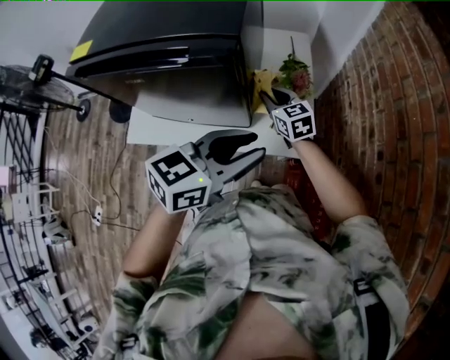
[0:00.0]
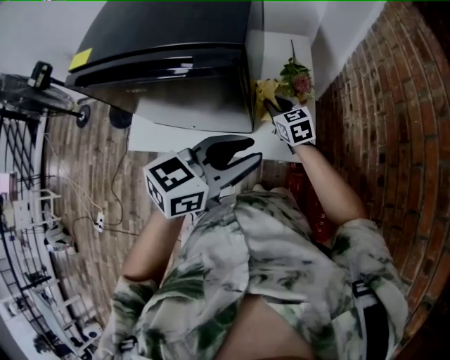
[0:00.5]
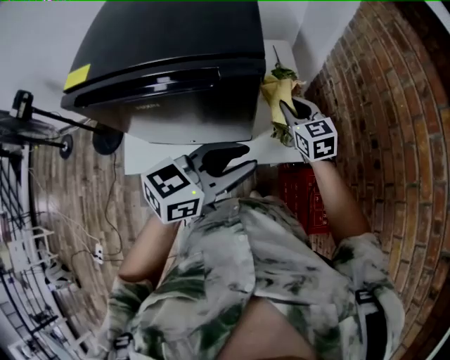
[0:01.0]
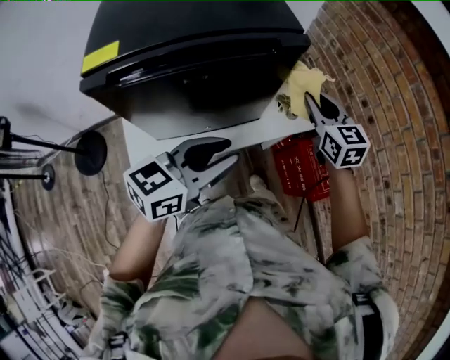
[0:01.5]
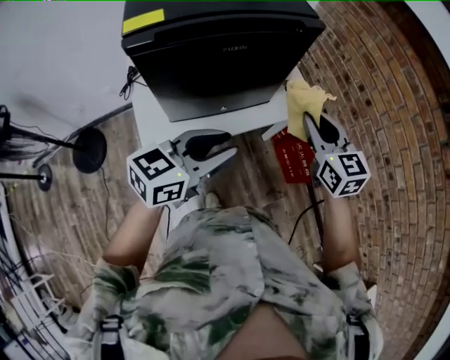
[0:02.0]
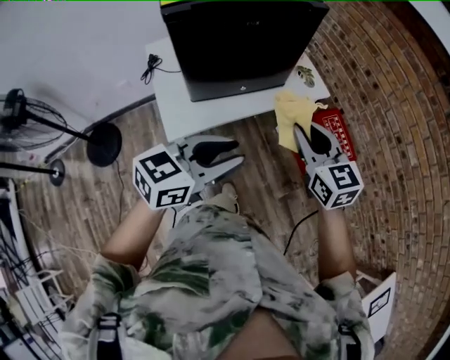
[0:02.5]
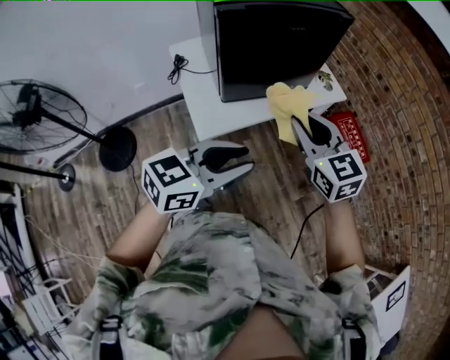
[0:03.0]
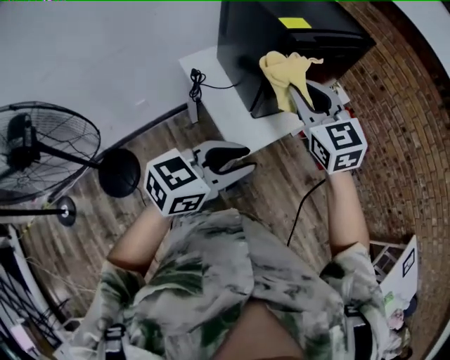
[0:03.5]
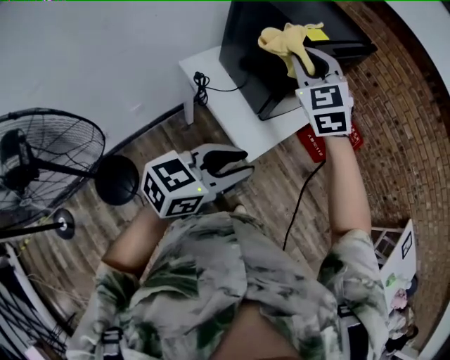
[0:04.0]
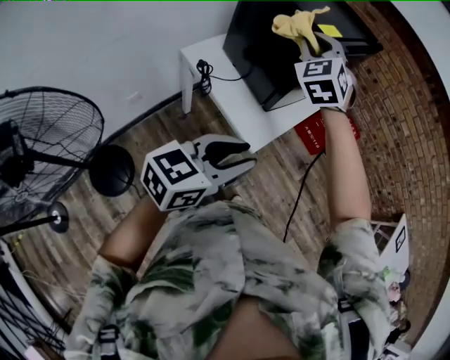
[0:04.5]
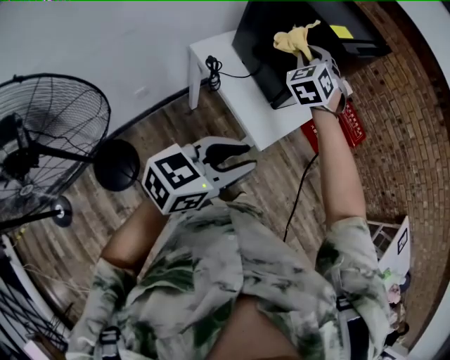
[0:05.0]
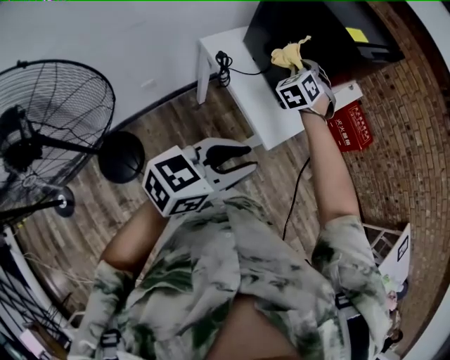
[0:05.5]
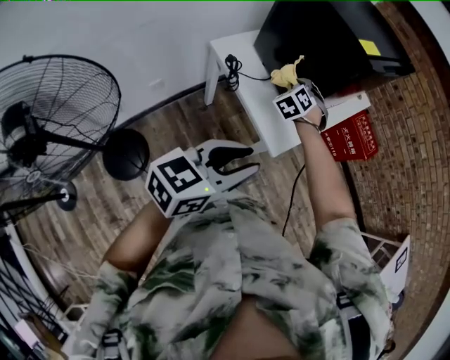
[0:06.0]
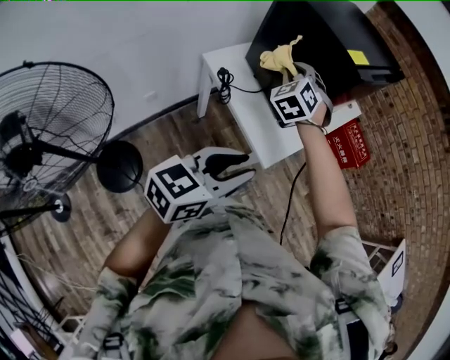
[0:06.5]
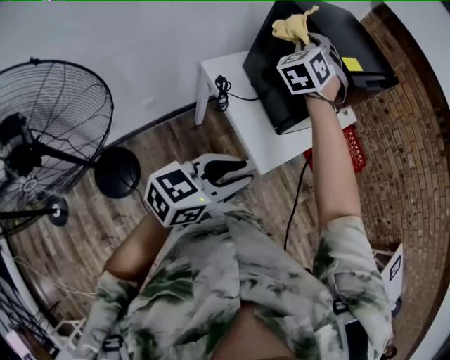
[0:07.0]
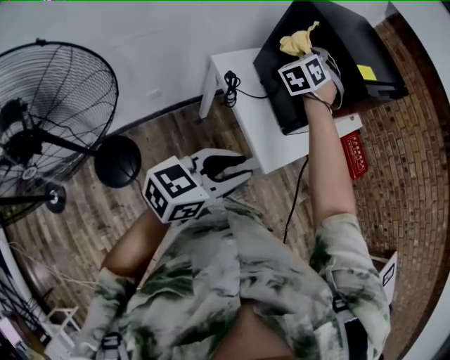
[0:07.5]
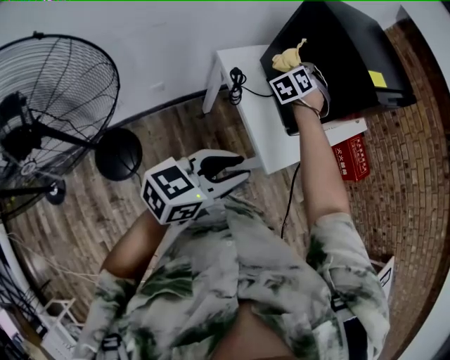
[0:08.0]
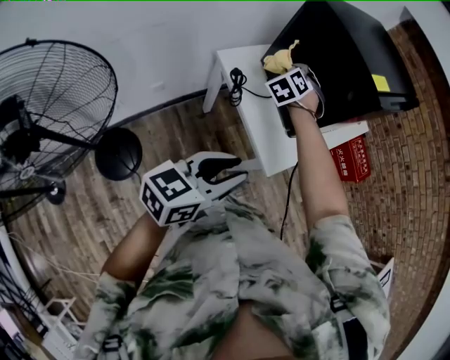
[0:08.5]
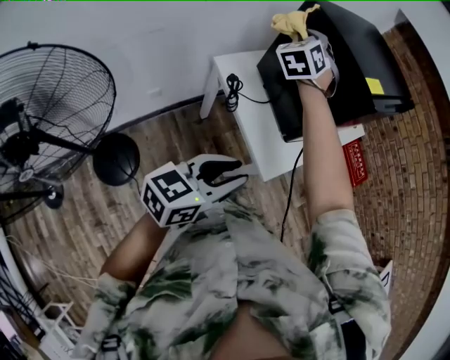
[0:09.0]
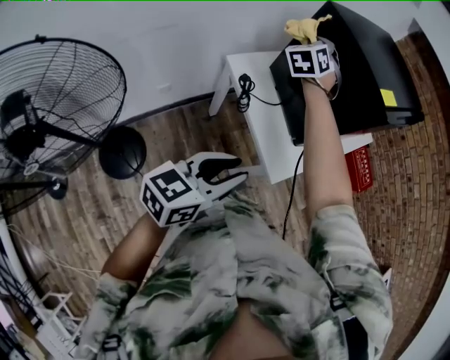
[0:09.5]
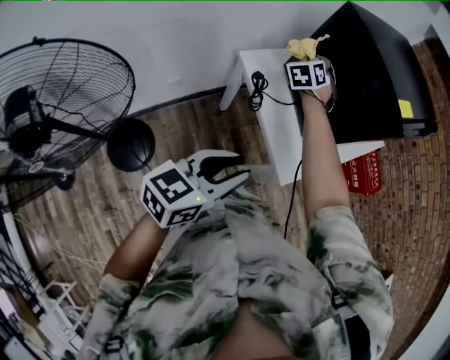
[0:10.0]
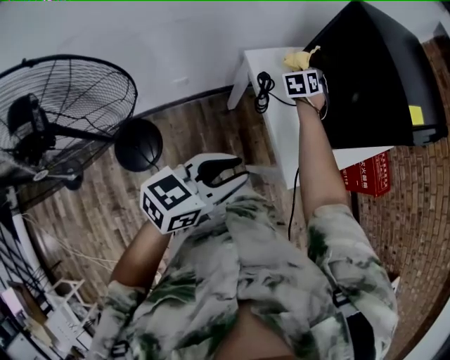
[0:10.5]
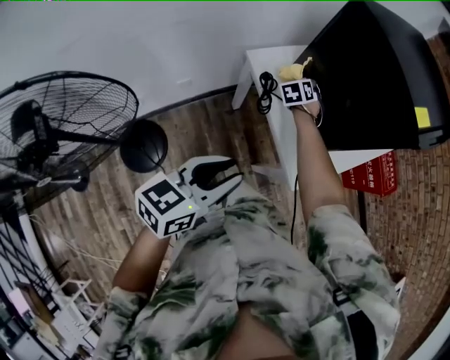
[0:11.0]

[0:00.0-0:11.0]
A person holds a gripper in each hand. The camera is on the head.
0:00.0 to 0:02.0: The left gripper shifts by some 35 cm, and swivels some 30 degrees. The right gripper moves some 35 cm, and turns by about 40 degrees.
0:02.0 to 0:03.5: The grippers both shift to the left and backward by about 40 cm.
0:03.5 to 0:05.5: The right gripper heads downward, to the left and forward, covering approximately 25 cm, and rotates approximately 50 degrees. Meanwhile the left gripper travels to the left and backward by approximately 15 cm.
0:05.5 to 0:07.5: The right gripper swings up and down, about 25 cm each way, with 2 reversals.
0:07.5 to 0:09.0: The right gripper goes about 5 cm to the left, and moves approximately 15 cm downward and comes back.
0:09.0 to 0:11.0: The right gripper is displaced downward by roughly 30 cm, and swivels some 30 degrees; the left gripper shifts some 10 cm to the left.

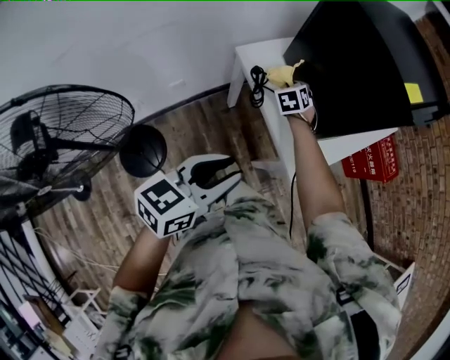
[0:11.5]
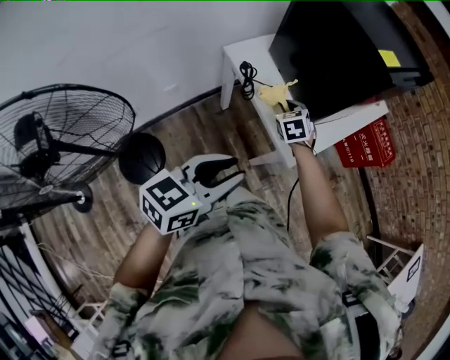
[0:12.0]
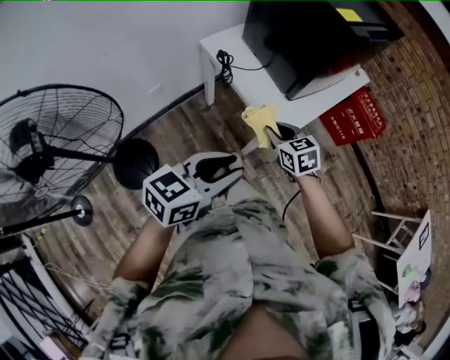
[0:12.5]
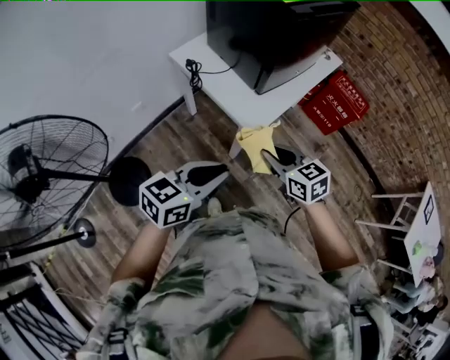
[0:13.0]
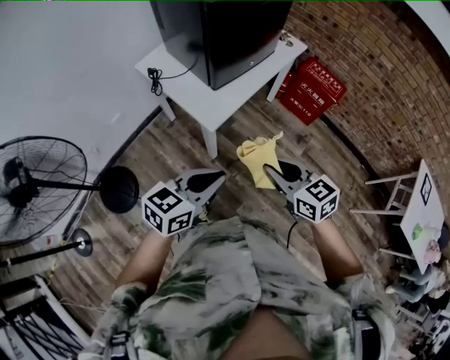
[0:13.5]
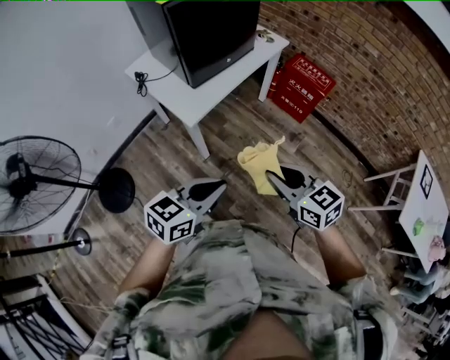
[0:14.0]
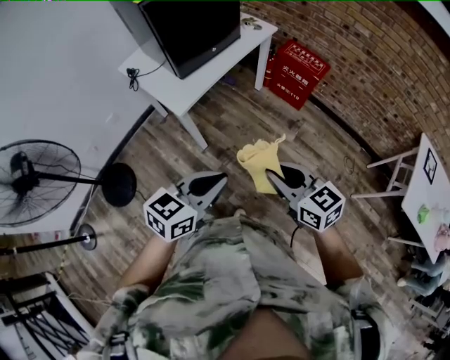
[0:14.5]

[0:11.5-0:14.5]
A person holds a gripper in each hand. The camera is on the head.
0:11.5 to 0:13.0: The left gripper heads to the right and backward, covering roughly 20 cm, while the right gripper shifts approximately 40 cm backward and to the right, and rotates roughly 40 degrees.
0:13.0 to 0:14.5: The right gripper goes about 40 cm to the right and backward. Meanwhile the left gripper goes some 35 cm to the right.

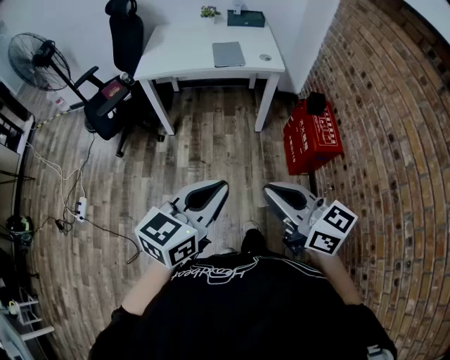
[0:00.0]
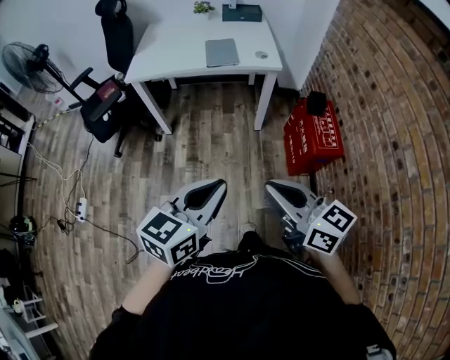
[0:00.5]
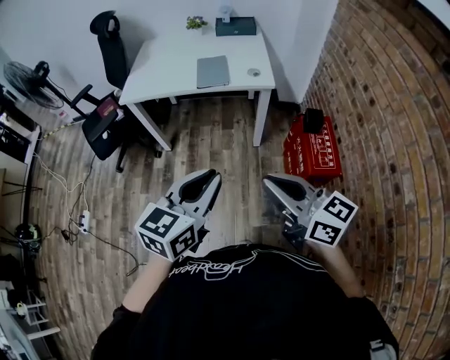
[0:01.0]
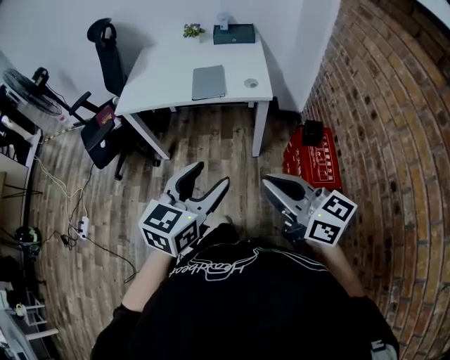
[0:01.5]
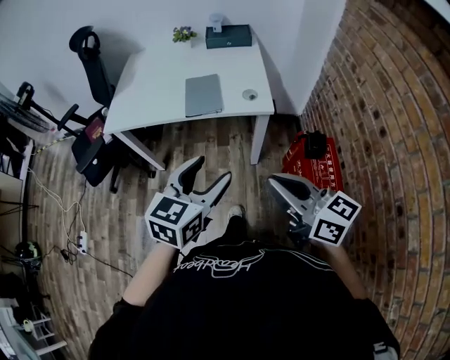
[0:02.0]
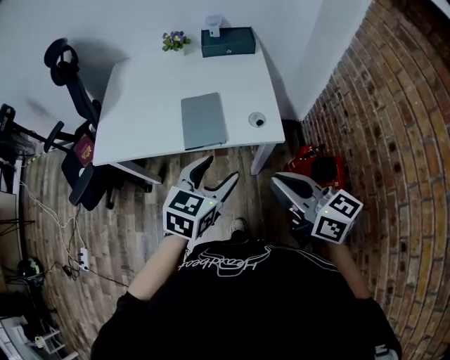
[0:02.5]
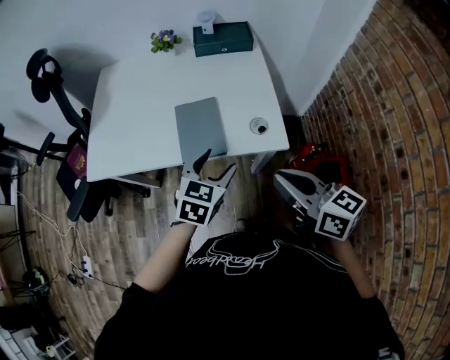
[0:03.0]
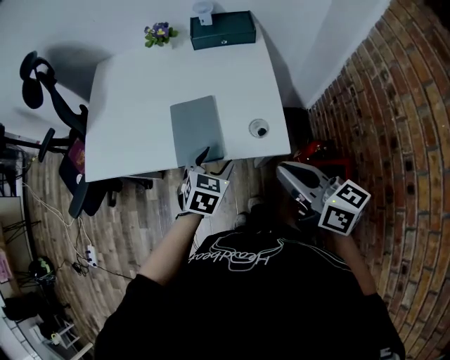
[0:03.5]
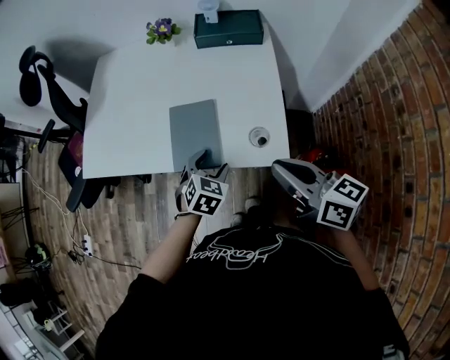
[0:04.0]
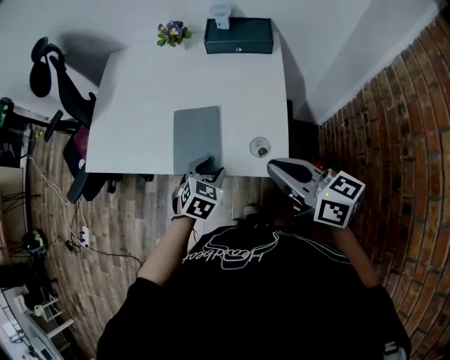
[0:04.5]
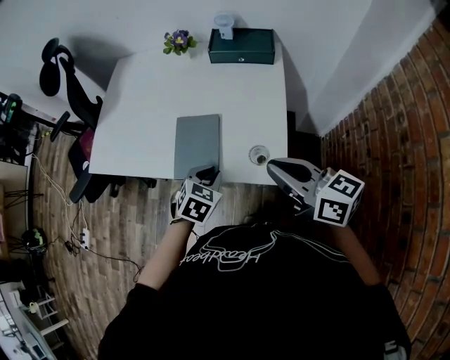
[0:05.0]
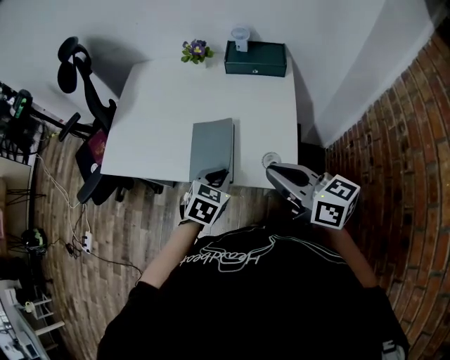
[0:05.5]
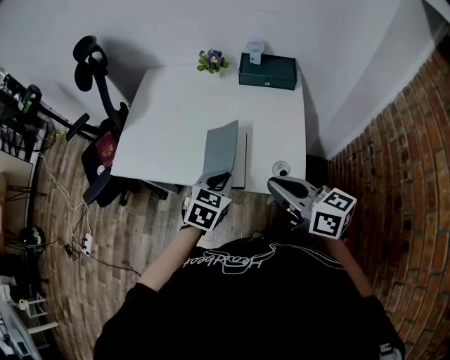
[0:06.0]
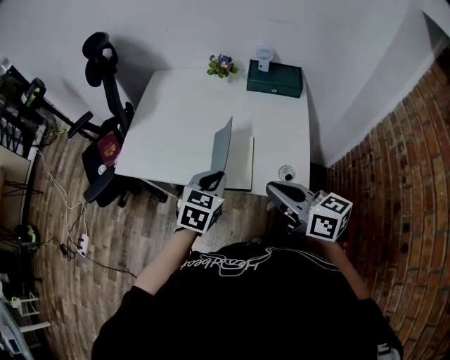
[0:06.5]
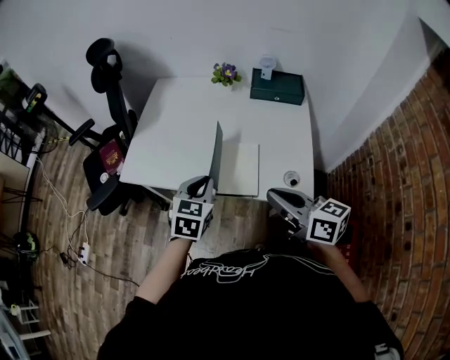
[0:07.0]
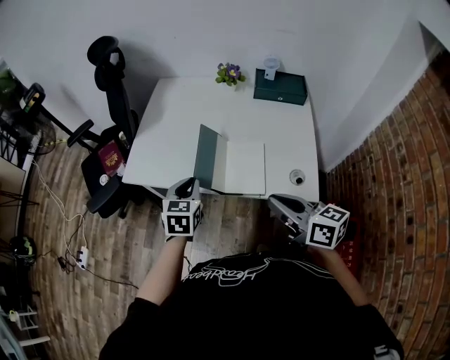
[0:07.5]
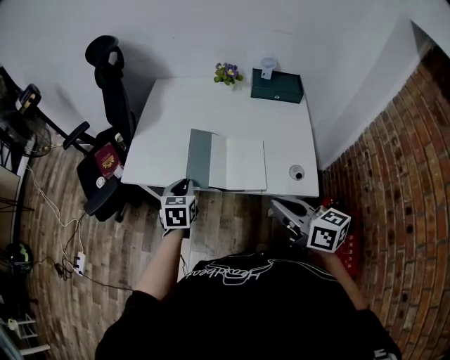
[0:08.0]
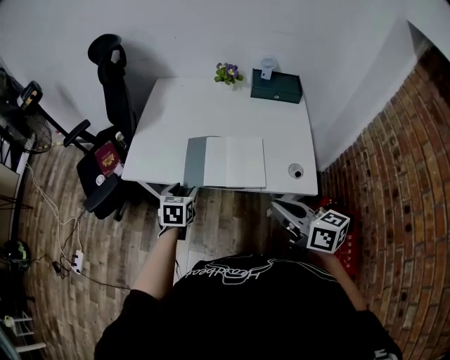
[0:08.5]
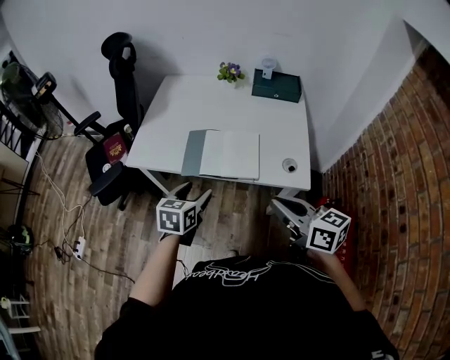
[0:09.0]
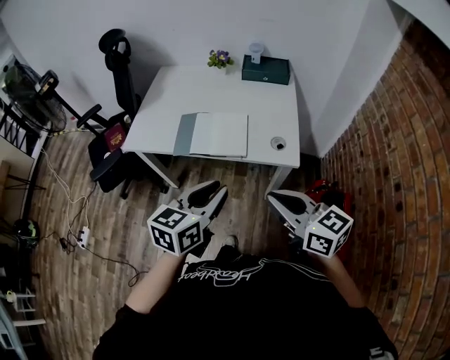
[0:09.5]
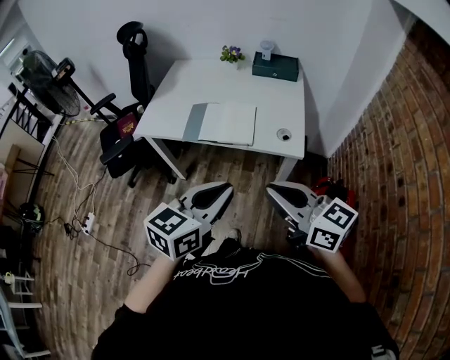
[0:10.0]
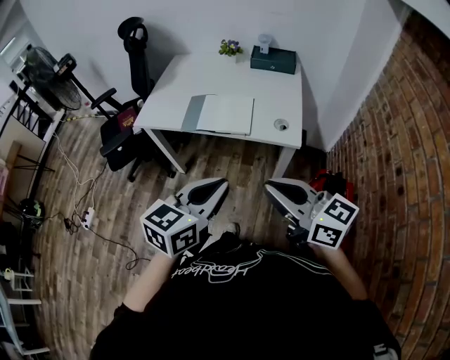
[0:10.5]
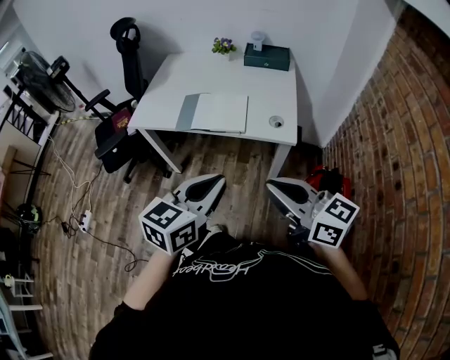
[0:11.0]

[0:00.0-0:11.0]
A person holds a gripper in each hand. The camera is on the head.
0:00.0 to 0:02.0: Both grippers travel together forward and to the right, roughly 35 cm. The left gripper opens.
0:02.0 to 0:03.5: The right gripper heads forward, covering about 25 cm, while the left gripper heads forward and downward, covering some 35 cm, and swivels about 30 degrees.
0:03.5 to 0:05.5: The left gripper closes up, while the right gripper goes roughly 5 cm forward.
0:05.5 to 0:07.5: The right gripper moves to the left, about 10 cm. Meanwhile the left gripper shifts approximately 20 cm to the left, and rotates some 30 degrees.
0:07.5 to 0:09.0: Both grippers move backward, approximately 10 cm. The left gripper opens its fingers.
0:09.0 to 0:11.0: The right gripper shifts approximately 15 cm backward. The left gripper heads backward, upward and to the right, covering about 30 cm, changes its angle by some 20 degrees, and closes its fingers.

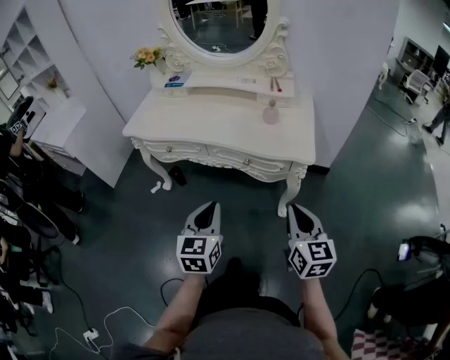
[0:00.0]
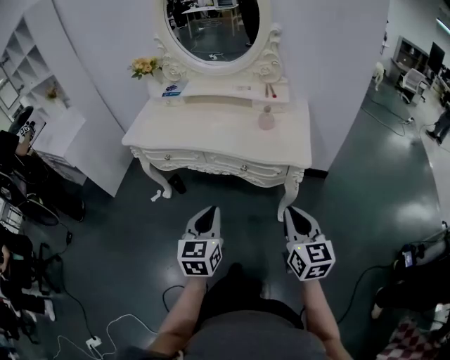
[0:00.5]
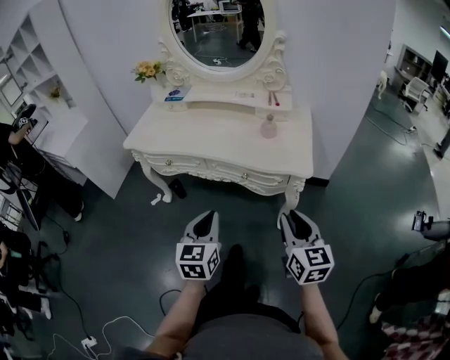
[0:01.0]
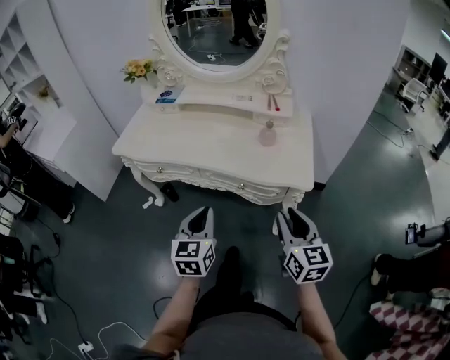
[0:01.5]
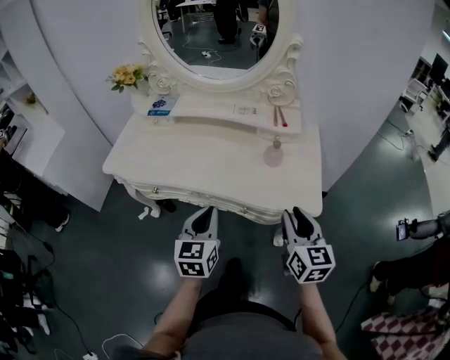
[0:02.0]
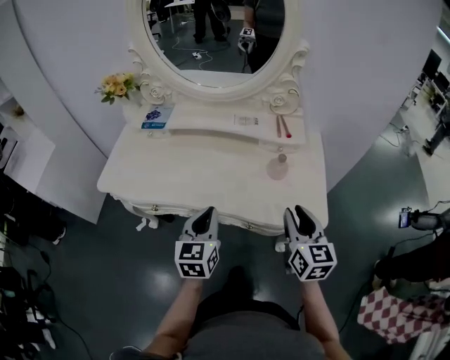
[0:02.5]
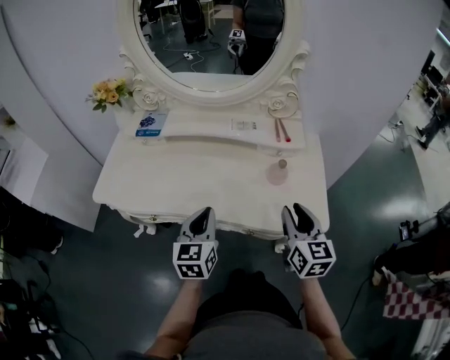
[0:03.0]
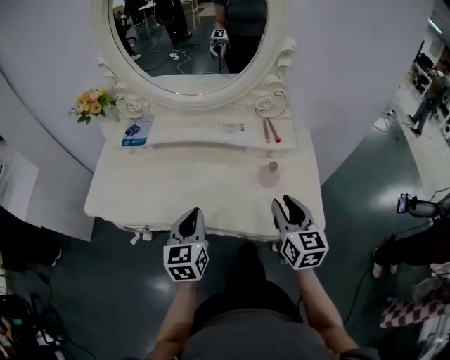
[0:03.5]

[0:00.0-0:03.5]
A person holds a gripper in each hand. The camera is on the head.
0:00.0 to 0:02.0: Both grippers move forward, some 20 cm. The right gripper opens its fingers.
0:02.0 to 0:03.5: Both grippers move forward, about 15 cm.
